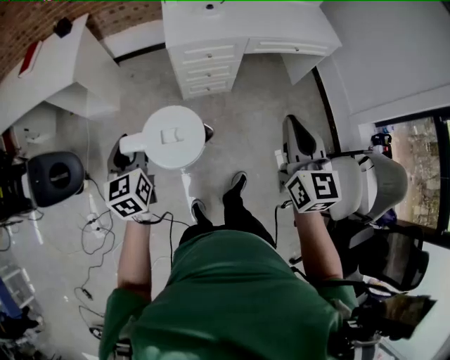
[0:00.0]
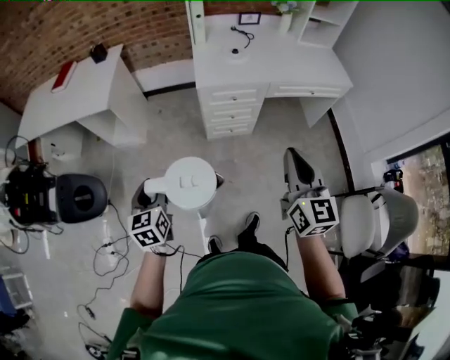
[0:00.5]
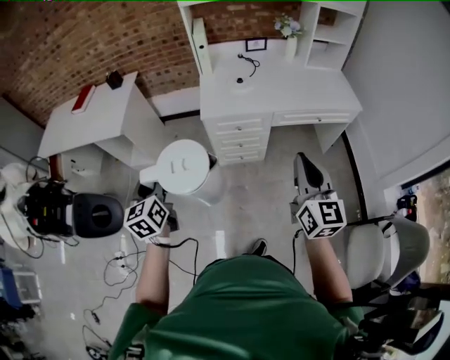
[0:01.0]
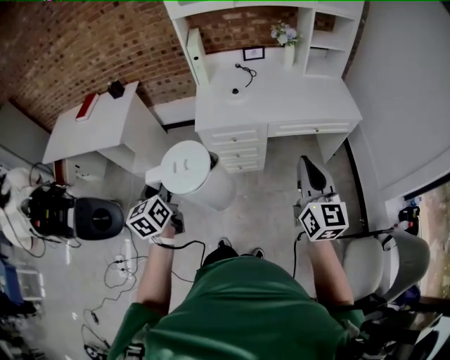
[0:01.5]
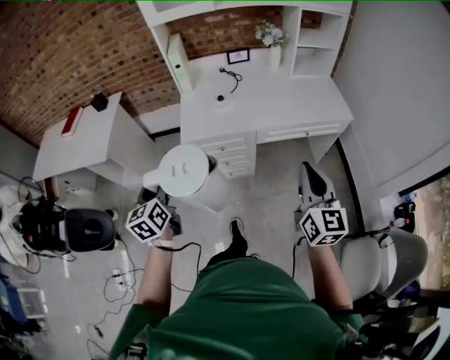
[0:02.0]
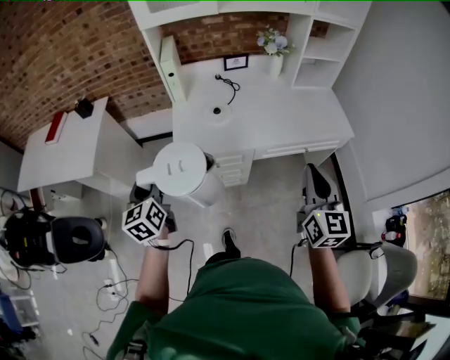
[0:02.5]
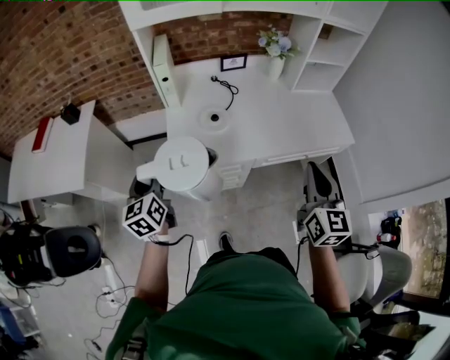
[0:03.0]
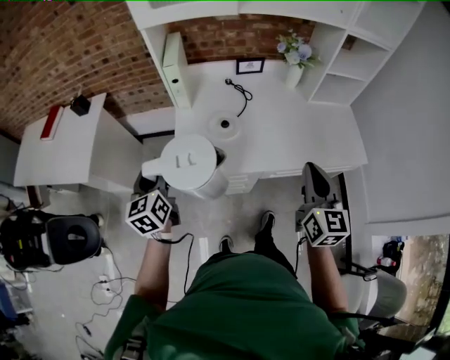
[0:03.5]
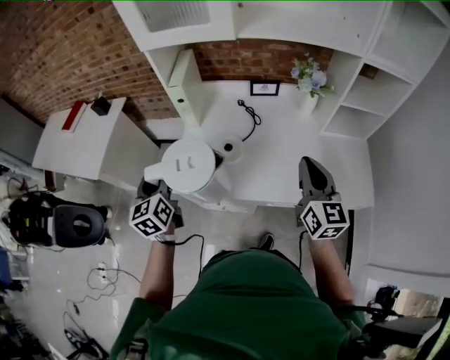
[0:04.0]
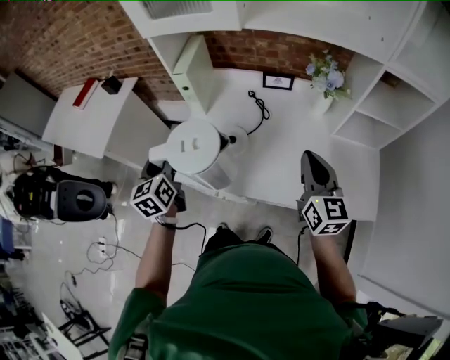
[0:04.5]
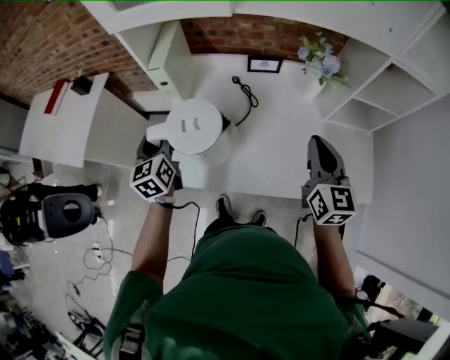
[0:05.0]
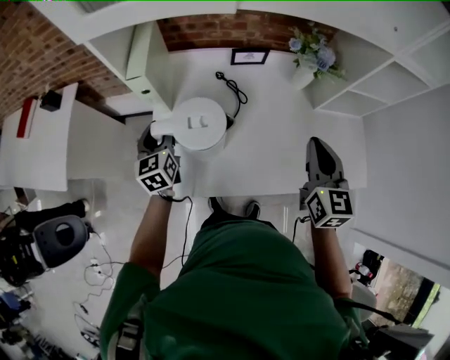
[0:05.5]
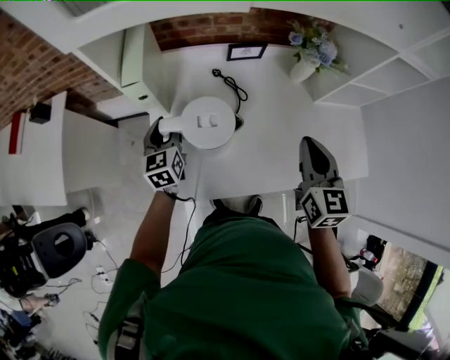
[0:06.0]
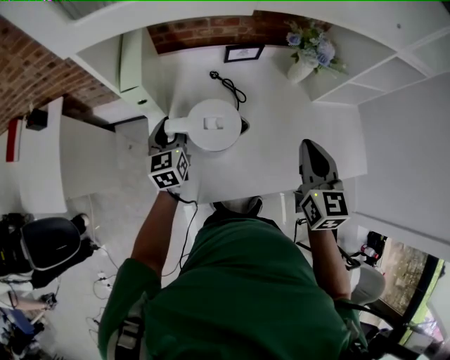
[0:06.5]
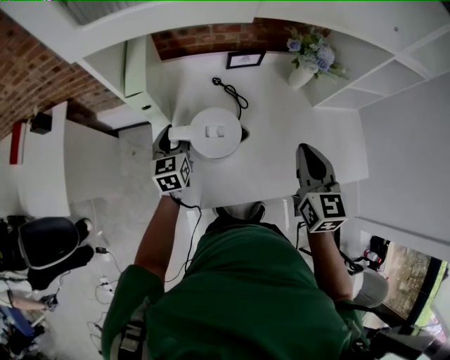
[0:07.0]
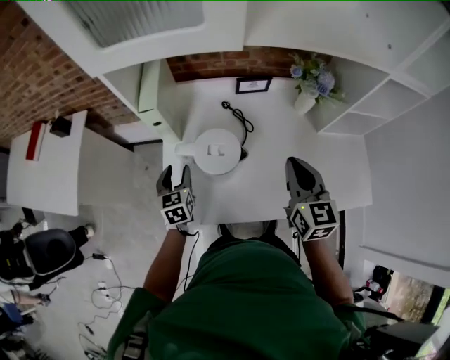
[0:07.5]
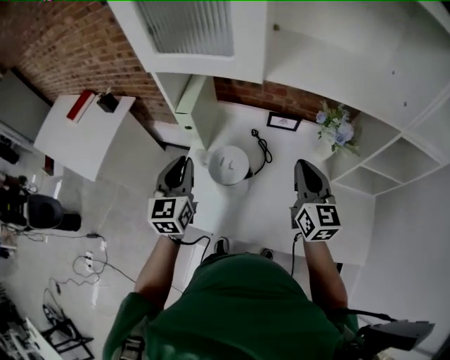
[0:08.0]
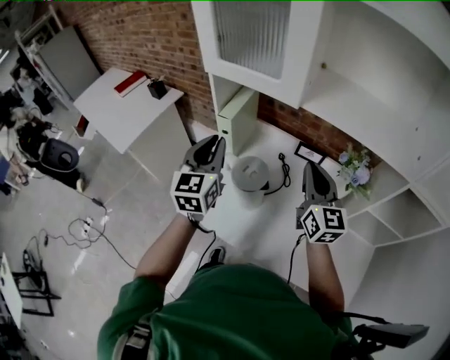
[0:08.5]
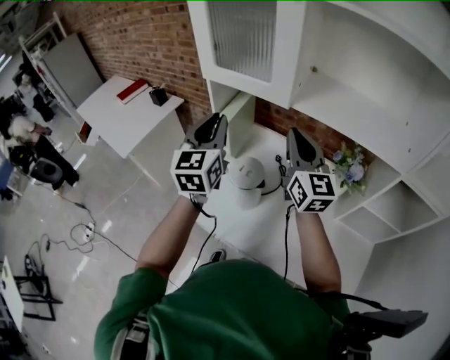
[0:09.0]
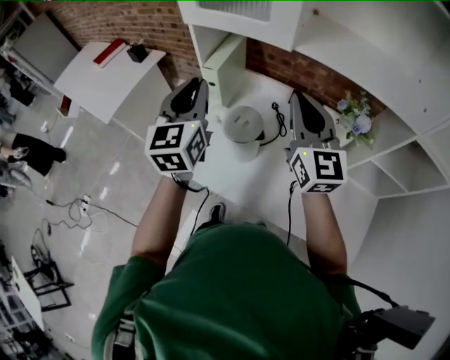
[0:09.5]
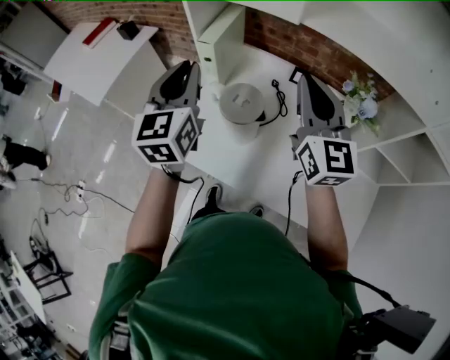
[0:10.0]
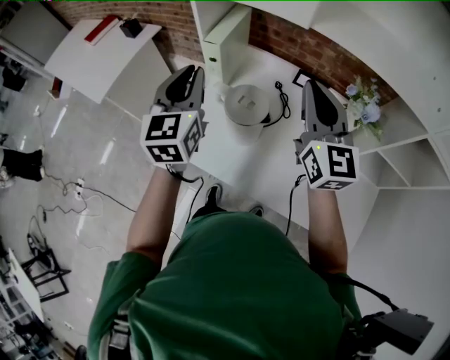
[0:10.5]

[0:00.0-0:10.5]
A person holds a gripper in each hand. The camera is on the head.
0:00.0 to 0:02.0: The left gripper moves to the right, forward and upward, roughly 20 cm. The right gripper shifts some 25 cm to the right and forward.
0:02.0 to 0:04.0: The grippers both shift forward by some 40 cm.
0:04.0 to 0:06.5: The left gripper goes about 30 cm forward and downward, and turns by approximately 20 degrees. The right gripper shifts some 15 cm forward and downward, and changes its angle by approximately 20 degrees.
0:06.5 to 0:08.5: The right gripper moves upward, approximately 10 cm, and turns by approximately 40 degrees; the left gripper heads upward, covering some 30 cm, turns by some 30 degrees, and closes its fingers.
0:08.5 to 0:10.5: The left gripper travels upward and back again, roughly 10 cm each way; the right gripper reaches about 10 cm upward, then returns.

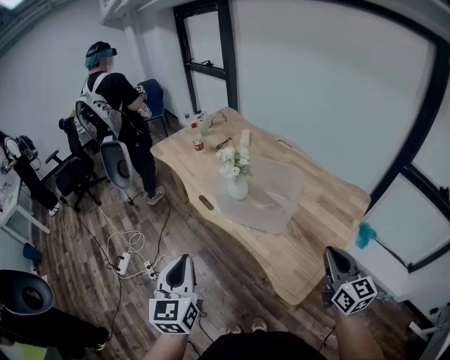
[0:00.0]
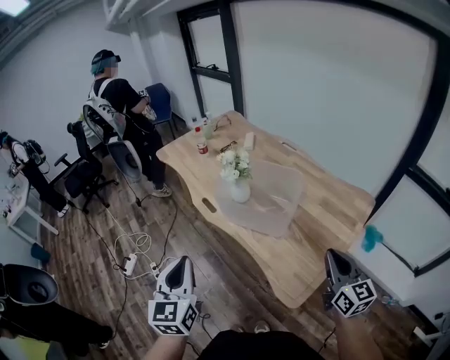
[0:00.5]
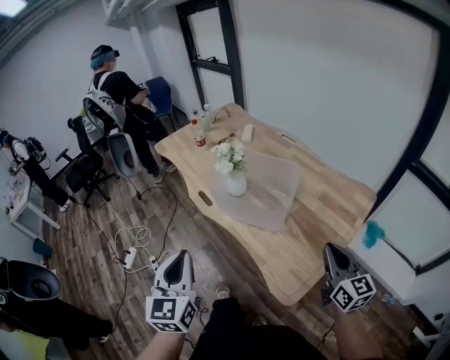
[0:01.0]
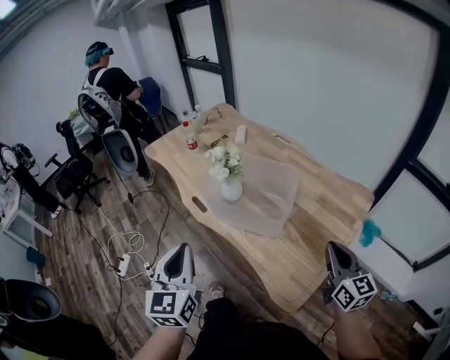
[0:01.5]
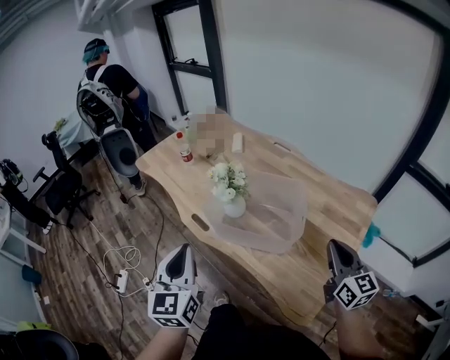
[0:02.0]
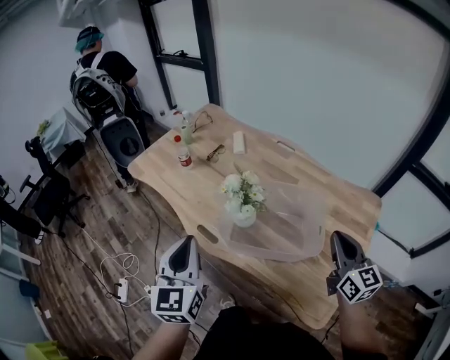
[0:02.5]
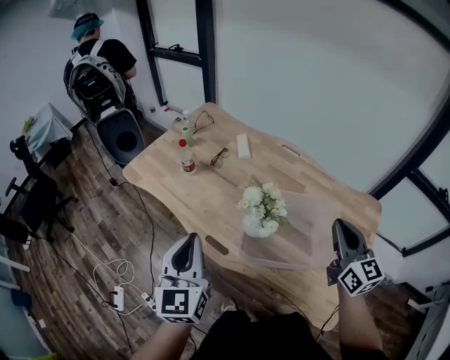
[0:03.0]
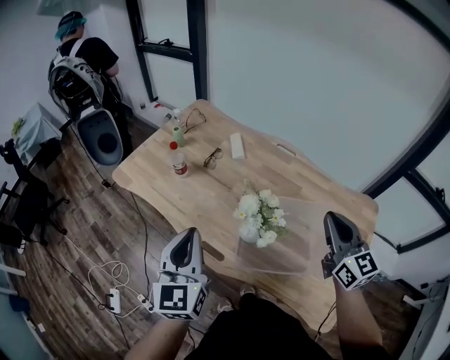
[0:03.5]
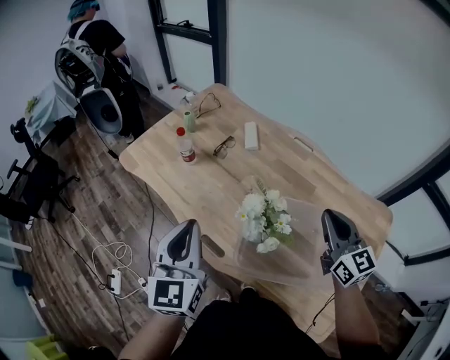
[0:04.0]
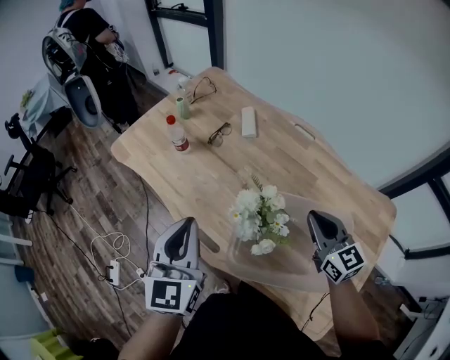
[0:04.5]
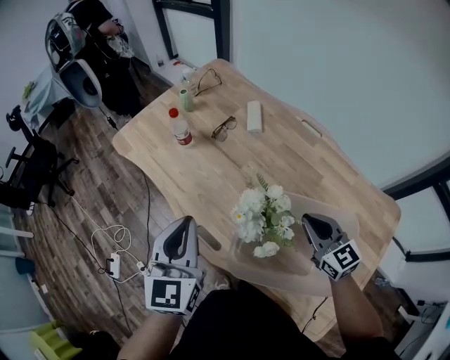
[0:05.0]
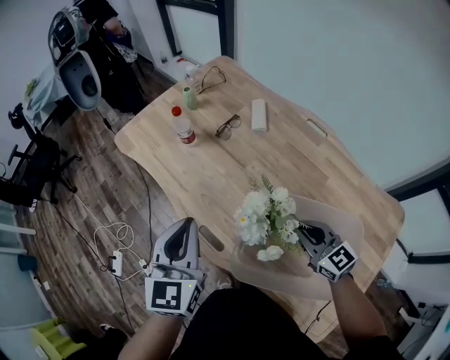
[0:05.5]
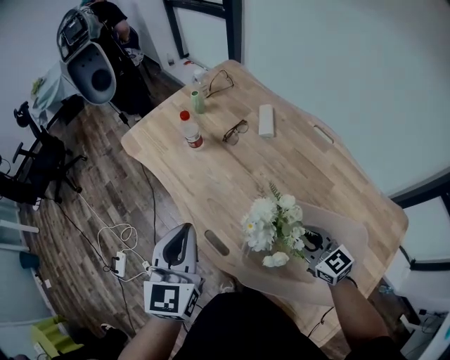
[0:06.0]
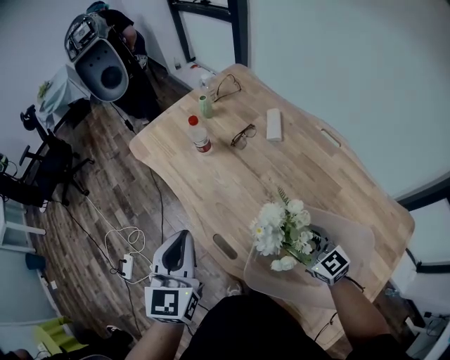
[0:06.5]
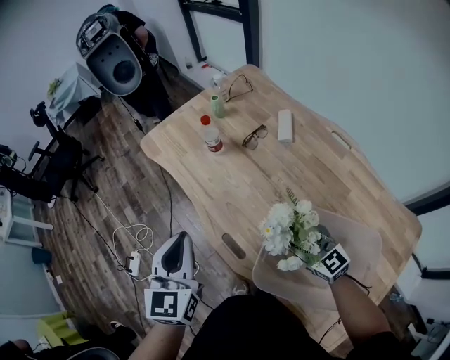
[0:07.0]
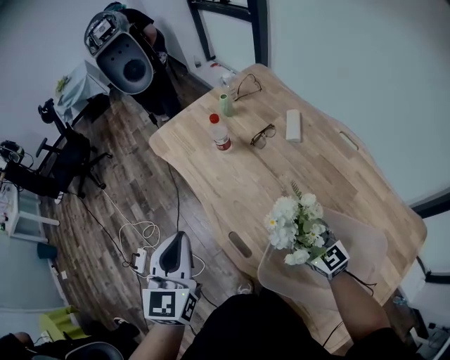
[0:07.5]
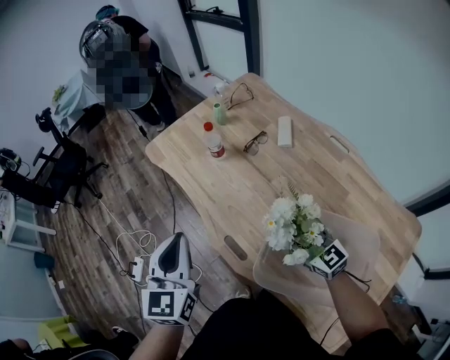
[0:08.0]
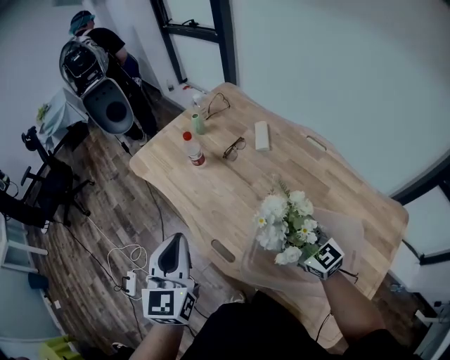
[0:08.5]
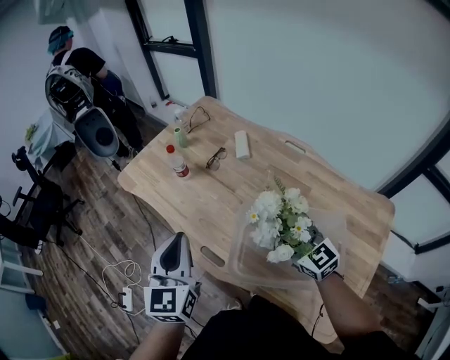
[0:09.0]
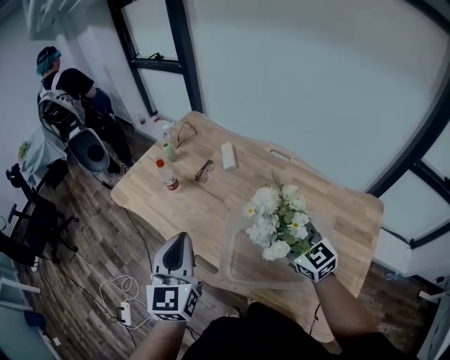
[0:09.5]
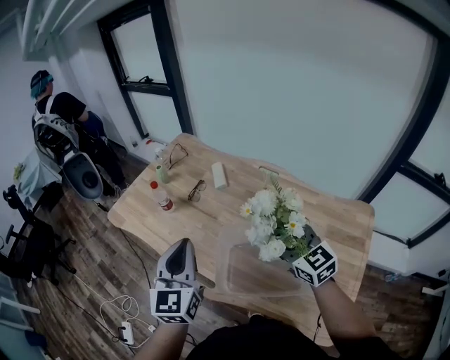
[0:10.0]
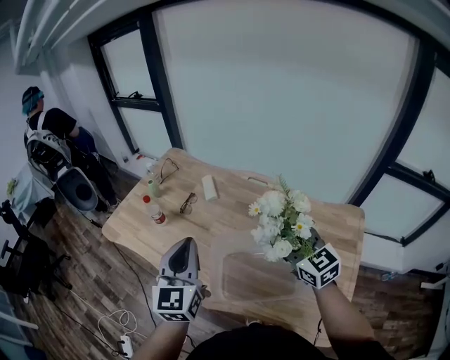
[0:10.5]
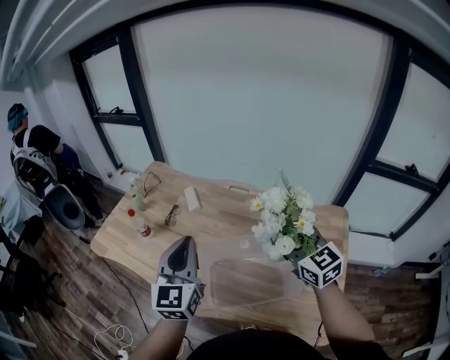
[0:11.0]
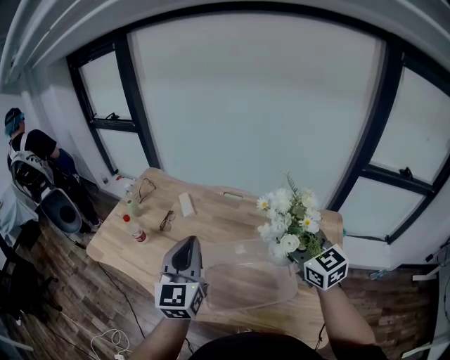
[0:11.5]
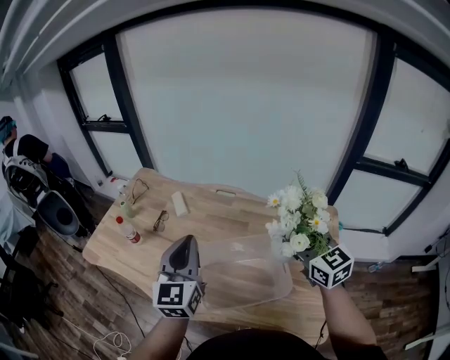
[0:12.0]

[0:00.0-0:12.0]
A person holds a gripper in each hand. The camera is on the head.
0:00.0 to 0:02.0: The two grippers go some 15 cm forward.
0:02.0 to 0:04.0: The left gripper heads forward, covering approximately 25 cm, while the right gripper moves forward and to the left, about 30 cm.
0:04.0 to 0:06.0: The left gripper heads downward, covering some 5 cm. The right gripper moves downward and to the left, about 20 cm, and changes its angle by approximately 30 degrees.
0:06.0 to 0:08.0: The grippers both shift to the left by about 5 cm. The right gripper opens its fingers.
0:08.0 to 0:10.0: The left gripper heads to the right and upward, covering approximately 15 cm, and rotates approximately 20 degrees, while the right gripper moves upward and to the right, roughly 20 cm, and turns by some 30 degrees.
0:10.0 to 0:12.0: The left gripper heads to the right, covering approximately 15 cm, while the right gripper shifts approximately 20 cm to the right and upward, and changes its angle by some 20 degrees.

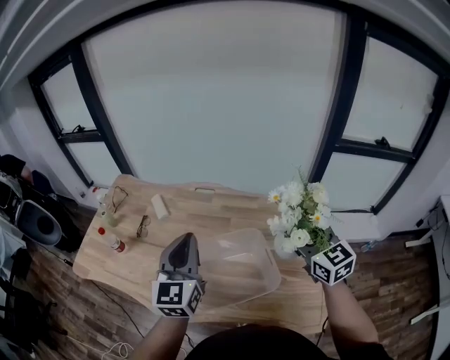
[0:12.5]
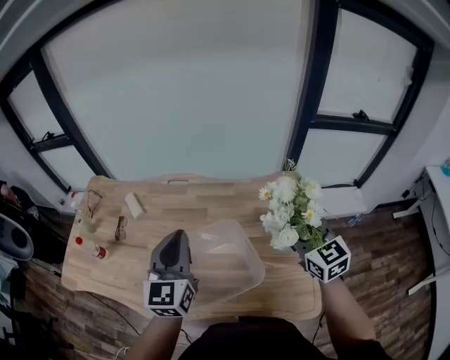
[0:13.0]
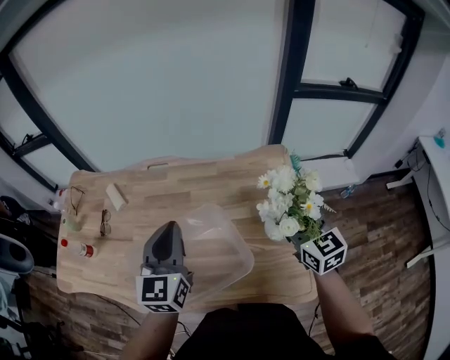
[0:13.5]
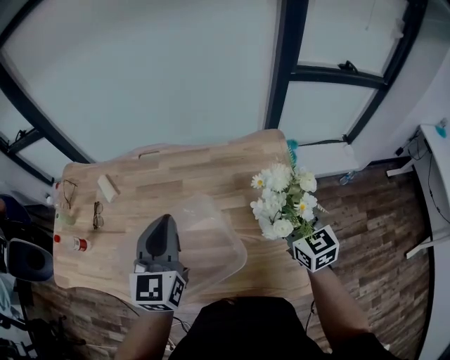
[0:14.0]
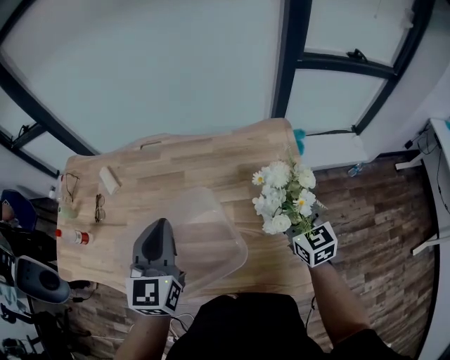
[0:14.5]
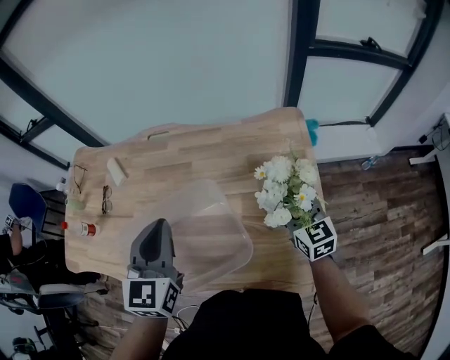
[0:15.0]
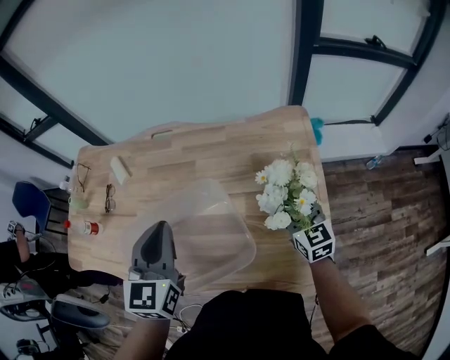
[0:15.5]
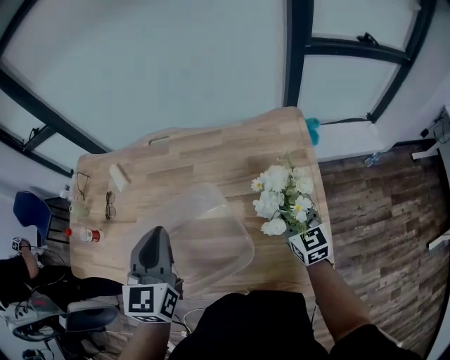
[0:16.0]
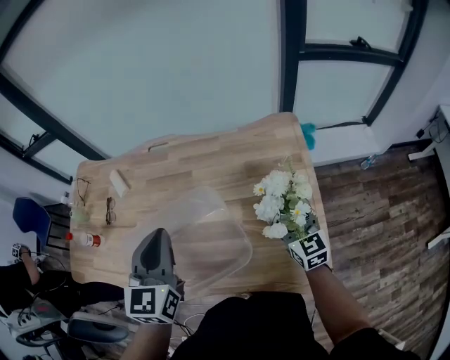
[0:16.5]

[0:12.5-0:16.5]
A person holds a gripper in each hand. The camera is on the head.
0:12.5 to 0:14.5: The right gripper heads downward and to the right, covering some 20 cm; the left gripper heads to the right and downward, covering approximately 15 cm.
0:14.5 to 0:16.5: The right gripper is displaced downward by some 5 cm.
